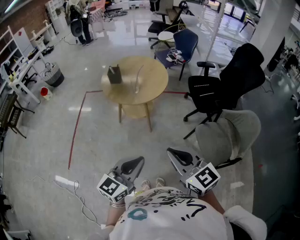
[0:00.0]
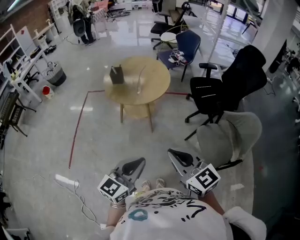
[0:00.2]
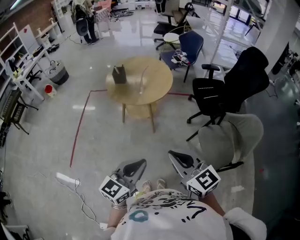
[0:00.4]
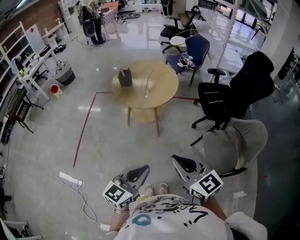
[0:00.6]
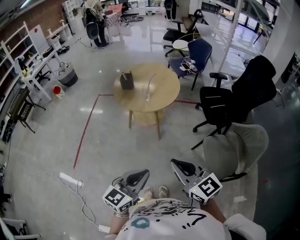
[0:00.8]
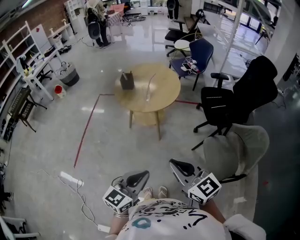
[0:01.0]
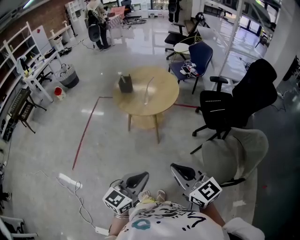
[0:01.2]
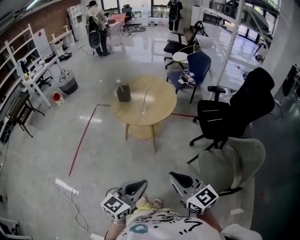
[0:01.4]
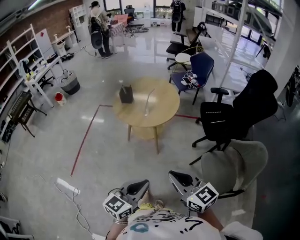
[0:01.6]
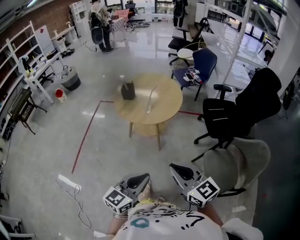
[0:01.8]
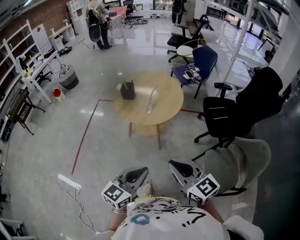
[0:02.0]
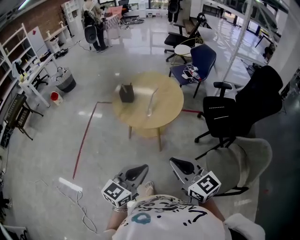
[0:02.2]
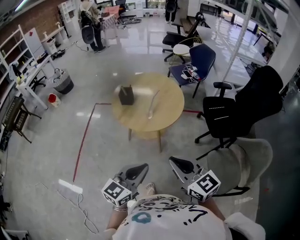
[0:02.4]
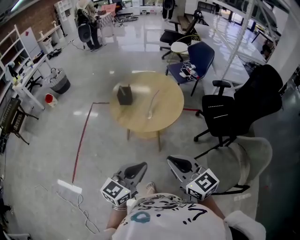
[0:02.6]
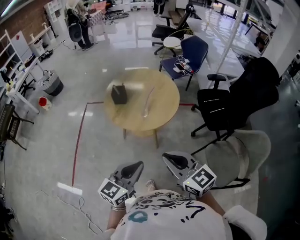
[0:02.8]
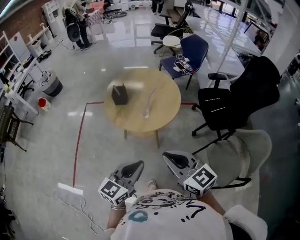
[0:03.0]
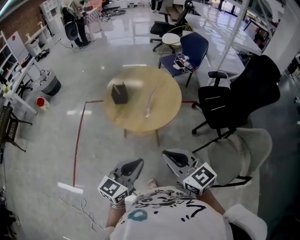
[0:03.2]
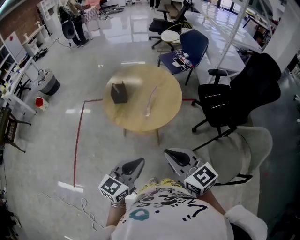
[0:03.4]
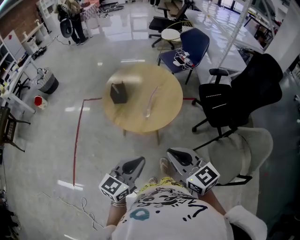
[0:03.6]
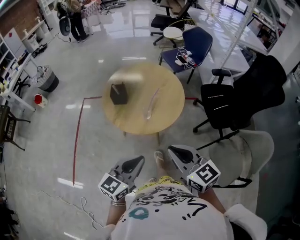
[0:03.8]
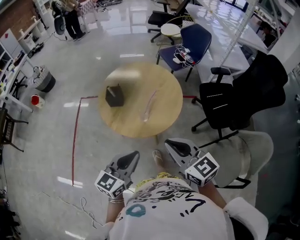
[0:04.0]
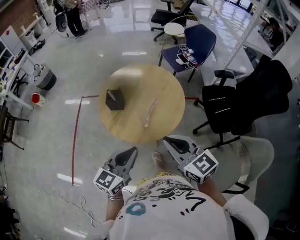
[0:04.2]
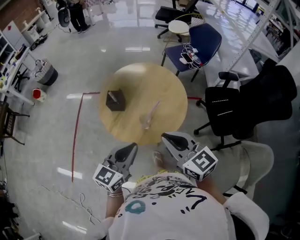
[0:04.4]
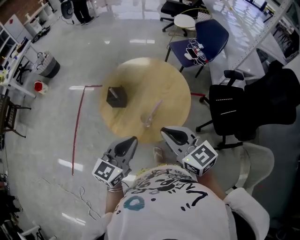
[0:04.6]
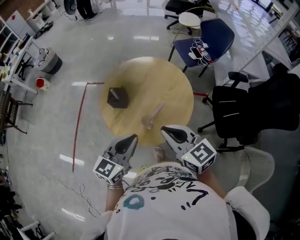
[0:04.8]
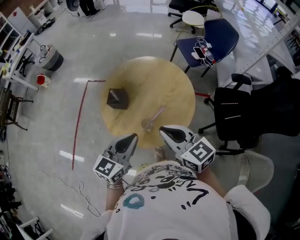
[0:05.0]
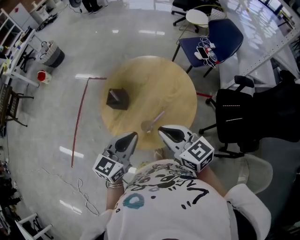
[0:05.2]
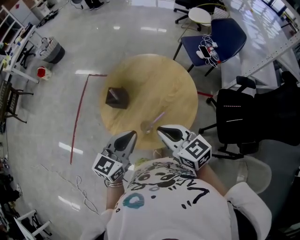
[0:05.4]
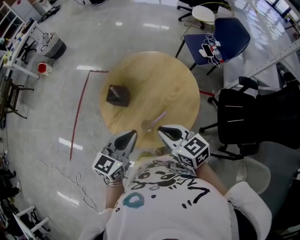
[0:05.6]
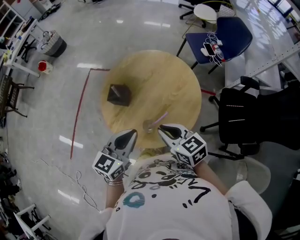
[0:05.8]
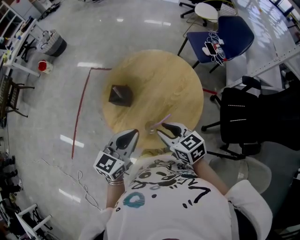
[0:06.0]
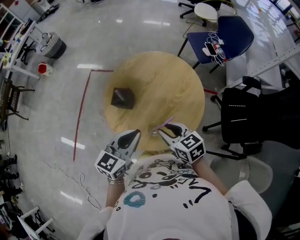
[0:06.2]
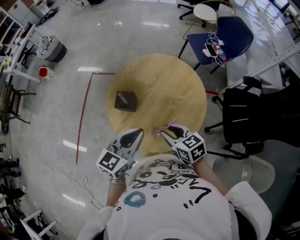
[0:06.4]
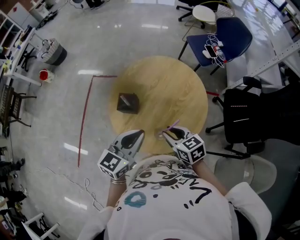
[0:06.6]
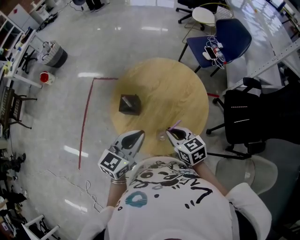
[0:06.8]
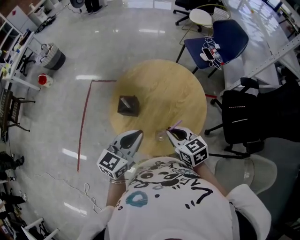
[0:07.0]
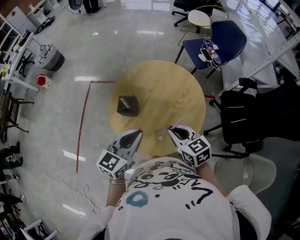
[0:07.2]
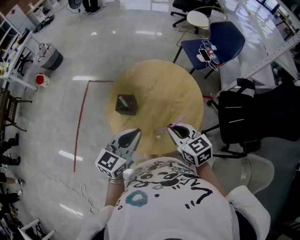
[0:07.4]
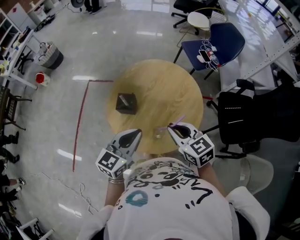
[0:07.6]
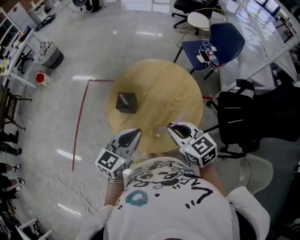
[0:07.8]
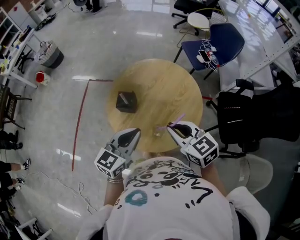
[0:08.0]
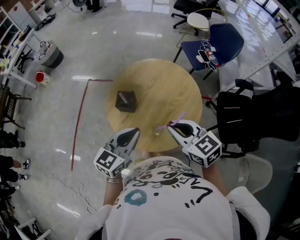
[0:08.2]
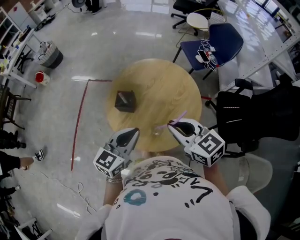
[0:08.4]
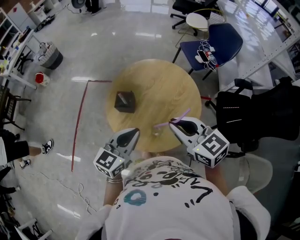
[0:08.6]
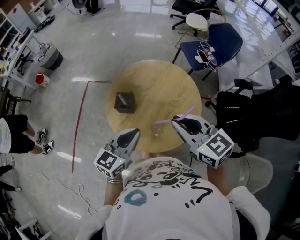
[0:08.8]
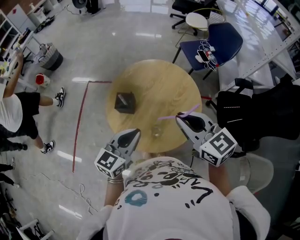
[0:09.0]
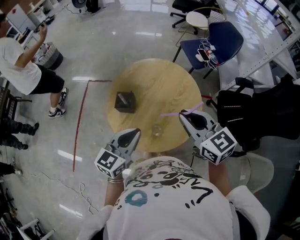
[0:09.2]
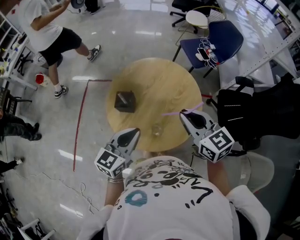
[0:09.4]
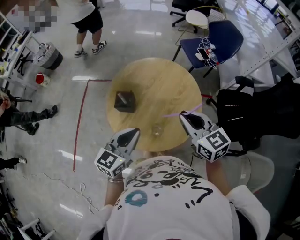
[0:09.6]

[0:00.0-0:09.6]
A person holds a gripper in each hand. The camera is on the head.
0:00.0 to 0:01.6: The right gripper moves approximately 5 cm; the left gripper moves some 5 cm.
0:01.6 to 0:03.2: Both grippers travel together forward and to the left, roughly 25 cm.
0:03.2 to 0:04.8: The grippers both shift forward by some 30 cm.
0:04.8 to 0:06.4: The left gripper heads forward, covering approximately 10 cm; the right gripper goes about 15 cm downward and forward, swivels roughly 20 degrees, and opens.
0:06.4 to 0:08.0: The right gripper shifts roughly 10 cm upward.
0:08.0 to 0:09.6: The right gripper moves to the right, roughly 5 cm, and moves roughly 10 cm upward and comes back.

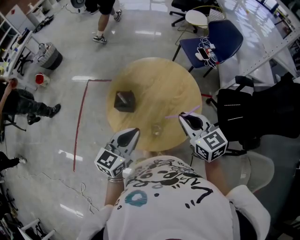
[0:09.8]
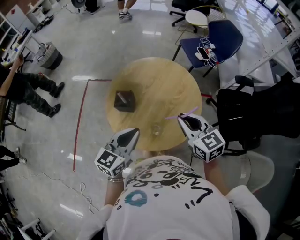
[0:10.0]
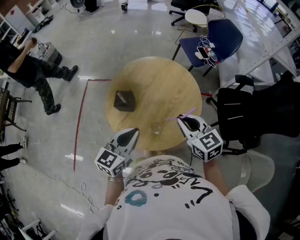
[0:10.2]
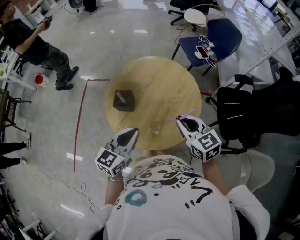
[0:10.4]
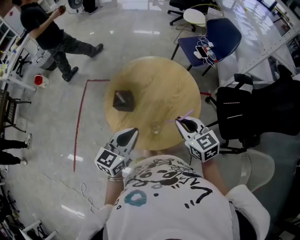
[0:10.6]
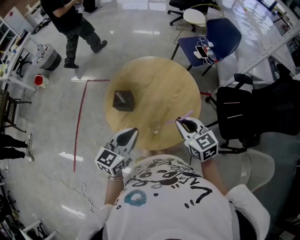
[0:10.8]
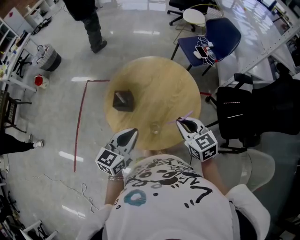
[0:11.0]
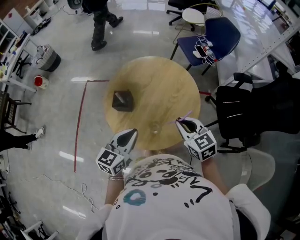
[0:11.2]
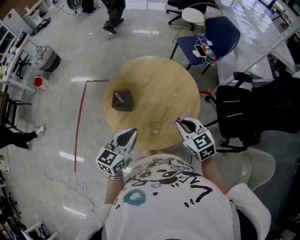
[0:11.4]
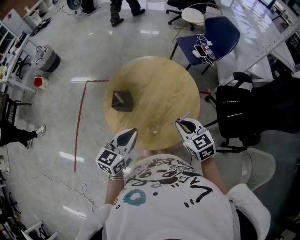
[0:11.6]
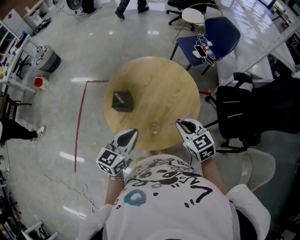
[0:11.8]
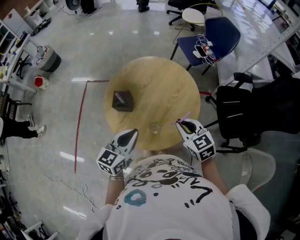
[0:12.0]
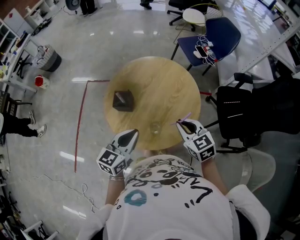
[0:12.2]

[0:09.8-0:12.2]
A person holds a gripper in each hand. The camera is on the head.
0:09.8 to 0:11.0: The right gripper travels downward by some 5 cm.
0:11.0 to 0:12.2: There are only small adjustments of the grippers.

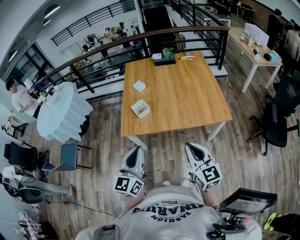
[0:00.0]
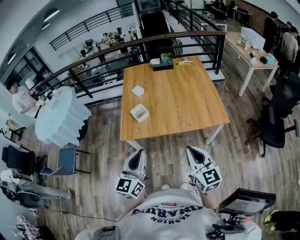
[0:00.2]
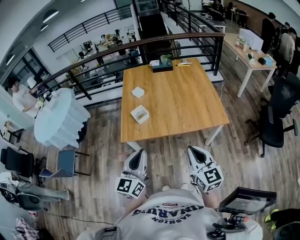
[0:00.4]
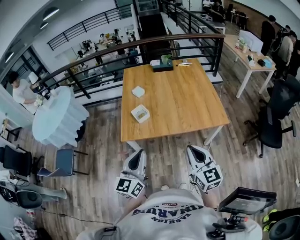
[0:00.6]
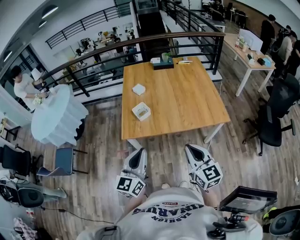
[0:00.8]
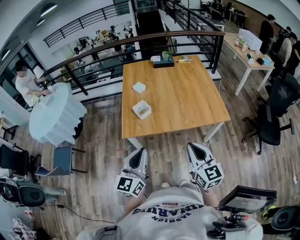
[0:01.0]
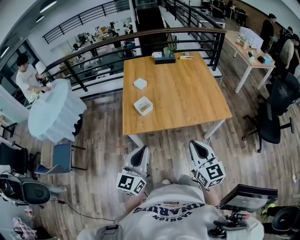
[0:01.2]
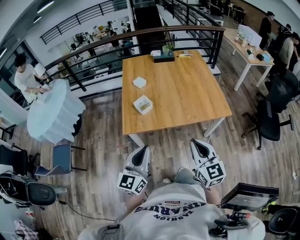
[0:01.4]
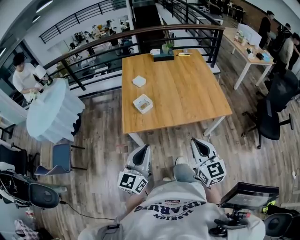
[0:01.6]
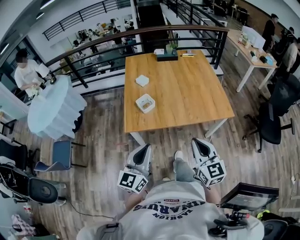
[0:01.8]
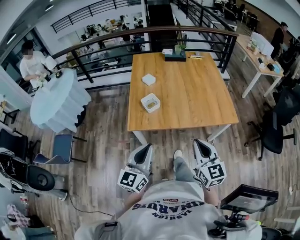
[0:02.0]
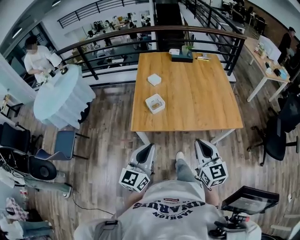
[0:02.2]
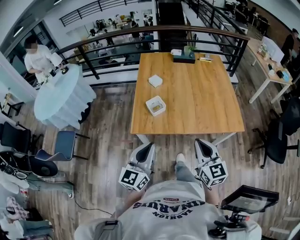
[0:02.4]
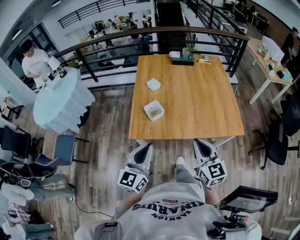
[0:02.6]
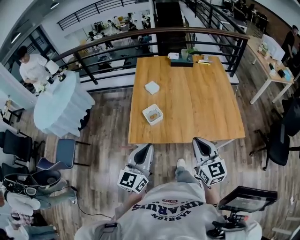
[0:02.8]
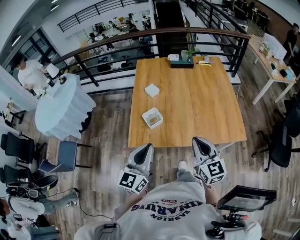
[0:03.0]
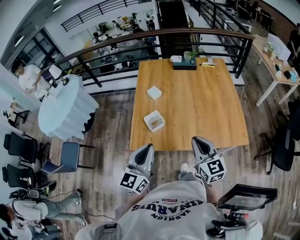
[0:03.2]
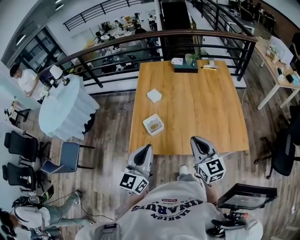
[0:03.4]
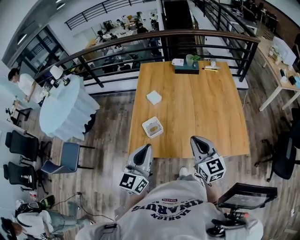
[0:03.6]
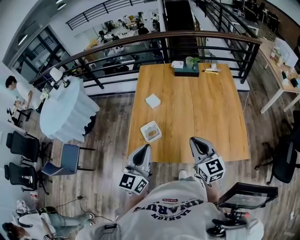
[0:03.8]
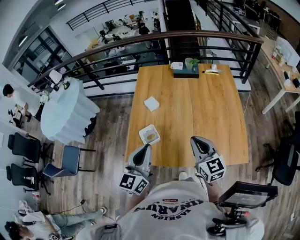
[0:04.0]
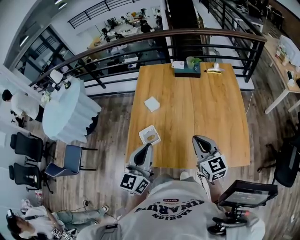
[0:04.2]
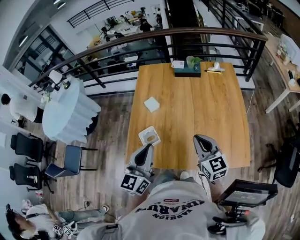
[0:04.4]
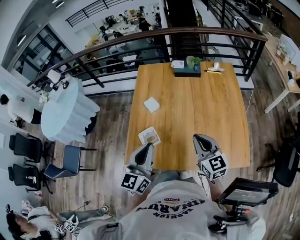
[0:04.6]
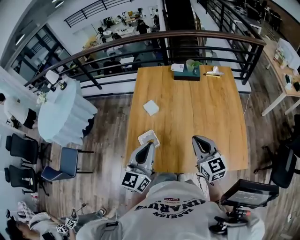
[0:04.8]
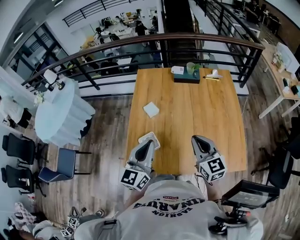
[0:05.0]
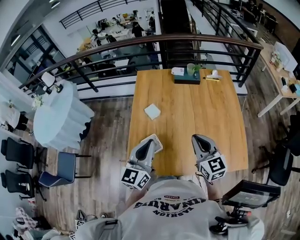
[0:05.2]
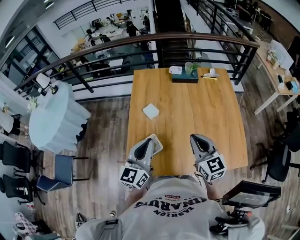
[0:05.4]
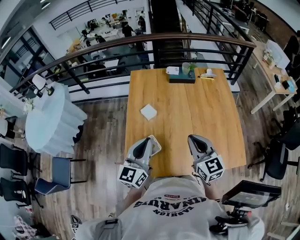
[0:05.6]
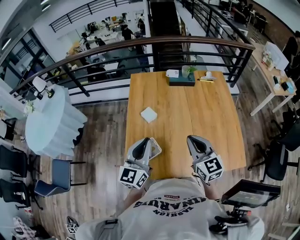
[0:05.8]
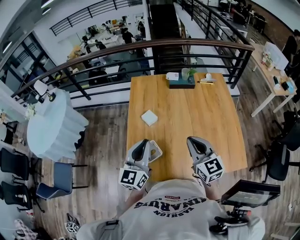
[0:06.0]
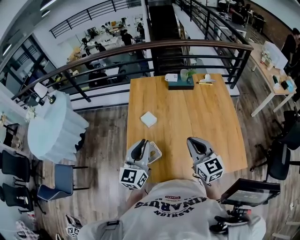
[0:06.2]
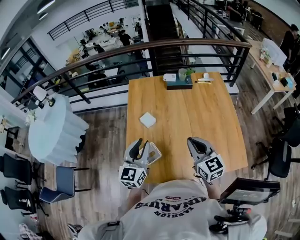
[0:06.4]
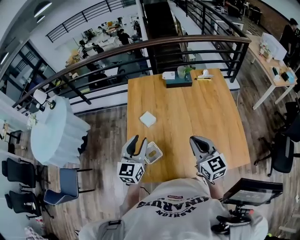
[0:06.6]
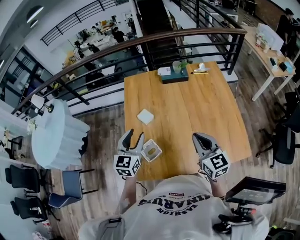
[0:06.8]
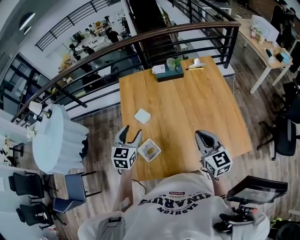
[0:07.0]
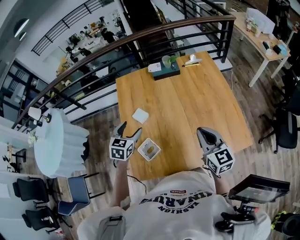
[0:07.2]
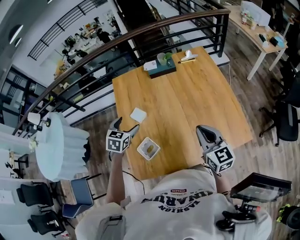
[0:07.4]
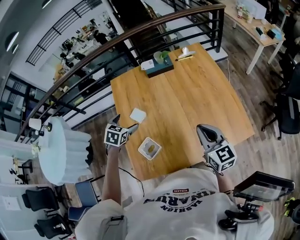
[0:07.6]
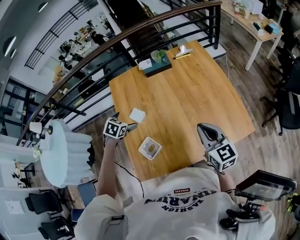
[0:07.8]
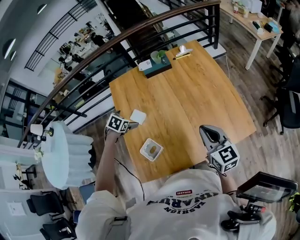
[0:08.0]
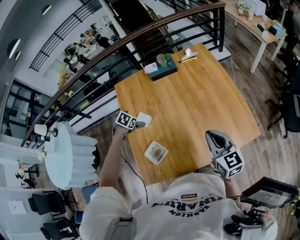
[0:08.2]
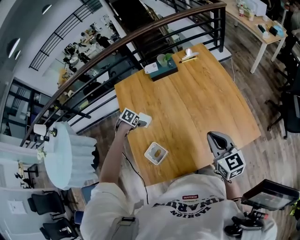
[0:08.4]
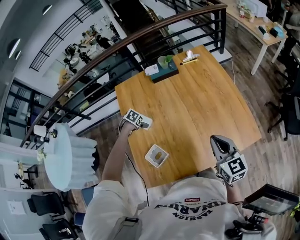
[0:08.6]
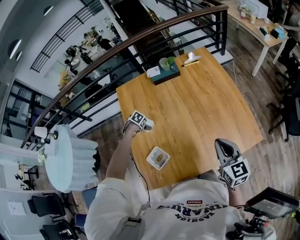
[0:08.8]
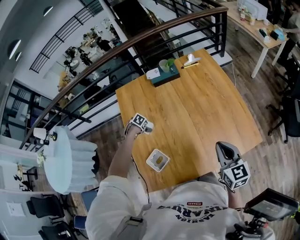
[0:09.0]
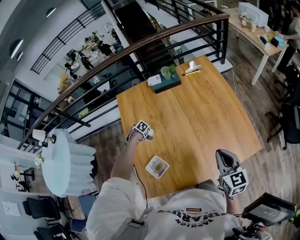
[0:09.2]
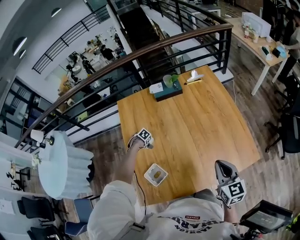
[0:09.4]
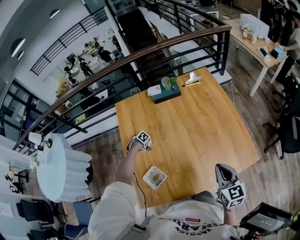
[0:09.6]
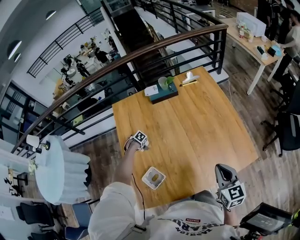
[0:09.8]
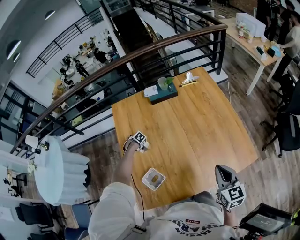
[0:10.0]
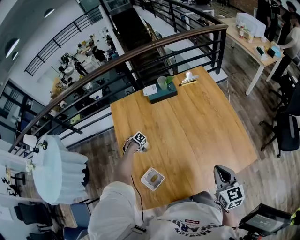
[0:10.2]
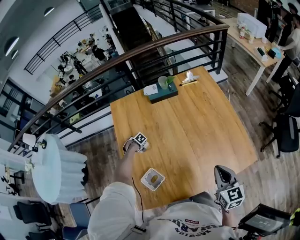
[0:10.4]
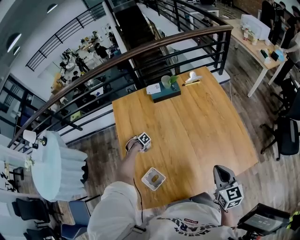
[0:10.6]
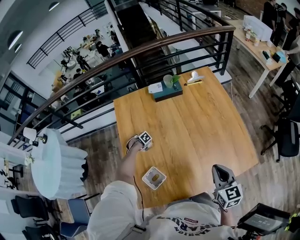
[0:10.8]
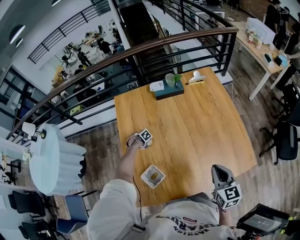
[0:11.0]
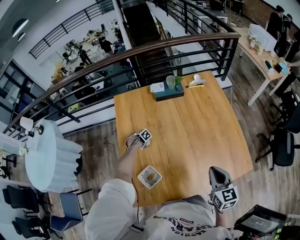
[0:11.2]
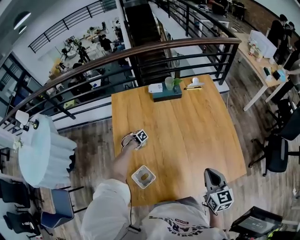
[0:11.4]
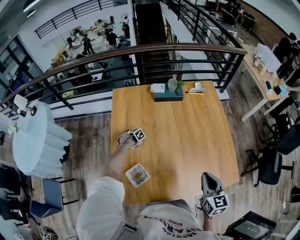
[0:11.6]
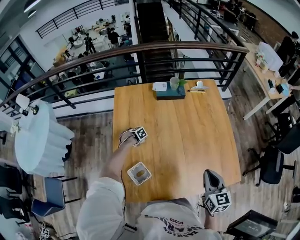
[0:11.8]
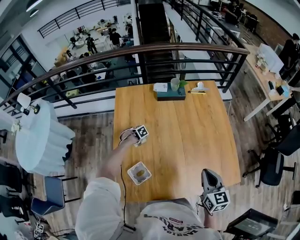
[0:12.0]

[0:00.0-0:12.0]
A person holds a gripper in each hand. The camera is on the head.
0:00.0 to 0:01.6: The grippers both shift to the left by approximately 10 cm.
0:01.6 to 0:03.0: Both grippers travel together forward, approximately 20 cm.
0:03.0 to 0:04.4: The left gripper shifts about 20 cm forward and to the right. The right gripper moves forward, approximately 20 cm.
0:04.4 to 0:06.0: The right gripper is displaced to the left and forward by roughly 10 cm, while the left gripper goes about 15 cm forward and to the left.
0:06.0 to 0:07.6: The left gripper travels forward and downward by roughly 20 cm, tips its fingers downward by about 50 degrees, and opens. Meanwhile the right gripper moves to the right, approximately 15 cm.
0:07.6 to 0:09.0: The right gripper moves about 5 cm; the left gripper is displaced downward by approximately 25 cm, and points its fingers about 30 degrees further downward.
0:09.0 to 0:10.4: The left gripper travels downward by about 10 cm.
0:10.4 to 0:12.0: The left gripper shifts by some 5 cm.
